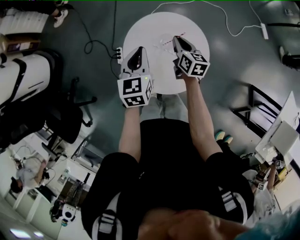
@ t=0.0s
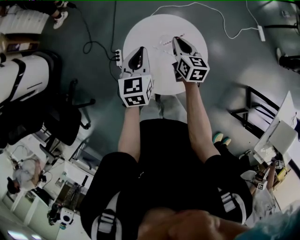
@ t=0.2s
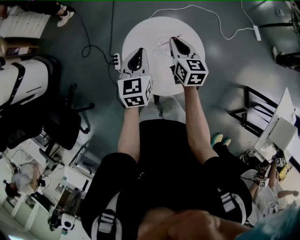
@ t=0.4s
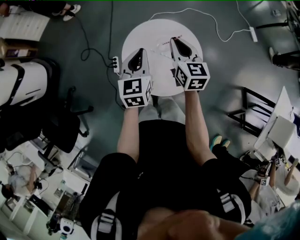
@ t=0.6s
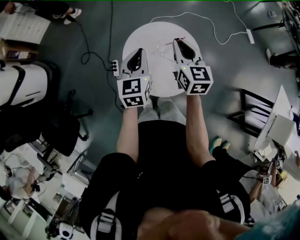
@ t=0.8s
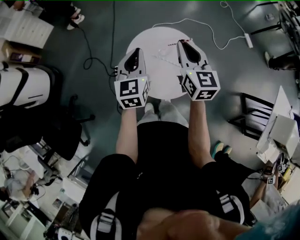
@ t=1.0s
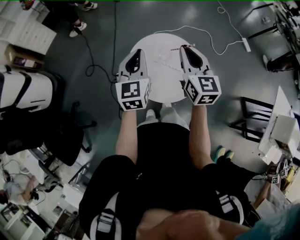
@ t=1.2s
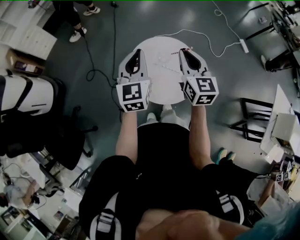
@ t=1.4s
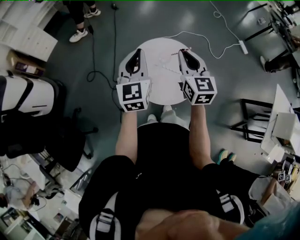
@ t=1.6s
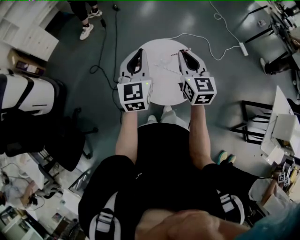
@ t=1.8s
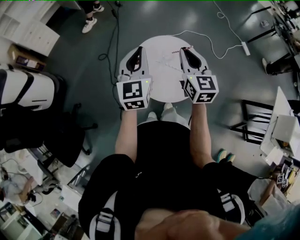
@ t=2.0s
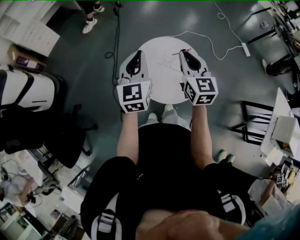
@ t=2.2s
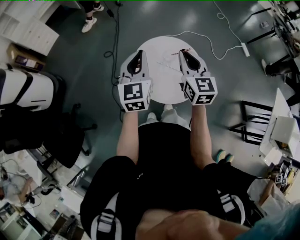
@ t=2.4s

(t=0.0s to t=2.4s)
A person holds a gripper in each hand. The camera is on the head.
t=0.0s - t=1.2s: The left gripper heads upward and backward, covering approximately 15 cm, while the right gripper is displaced upward and backward by about 30 cm, and swivels about 30 degrees.
t=1.2s - t=2.4s: The grippers make only small movements.

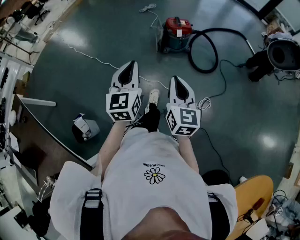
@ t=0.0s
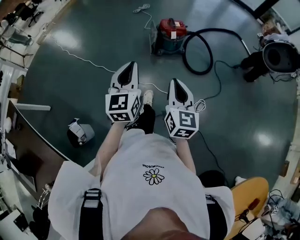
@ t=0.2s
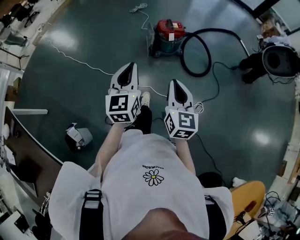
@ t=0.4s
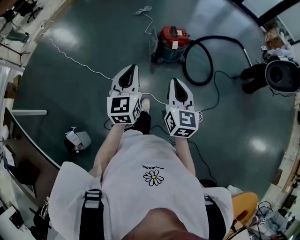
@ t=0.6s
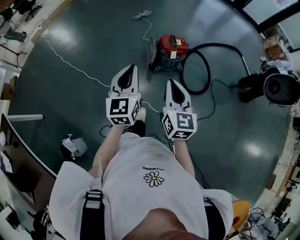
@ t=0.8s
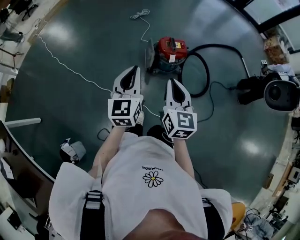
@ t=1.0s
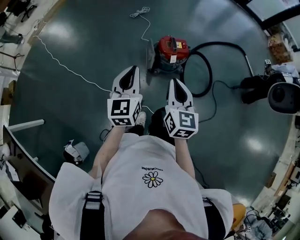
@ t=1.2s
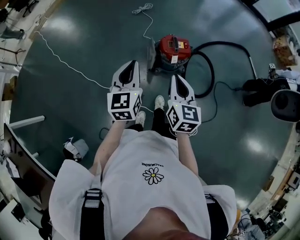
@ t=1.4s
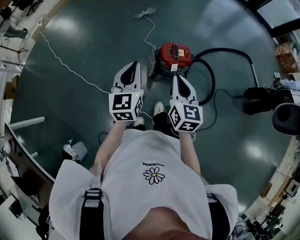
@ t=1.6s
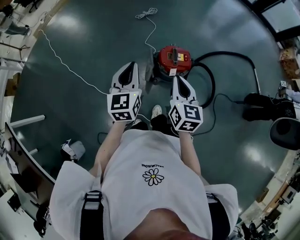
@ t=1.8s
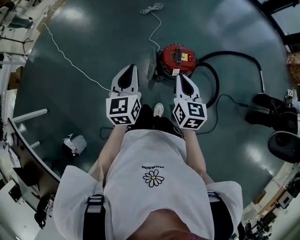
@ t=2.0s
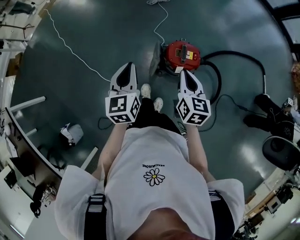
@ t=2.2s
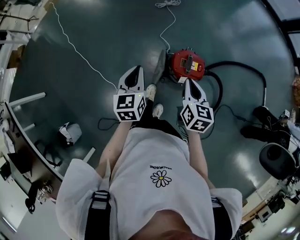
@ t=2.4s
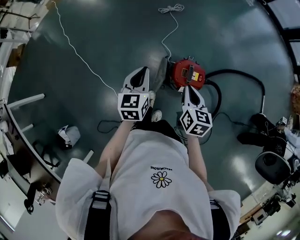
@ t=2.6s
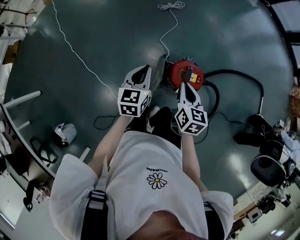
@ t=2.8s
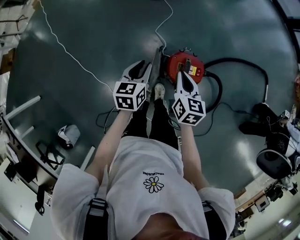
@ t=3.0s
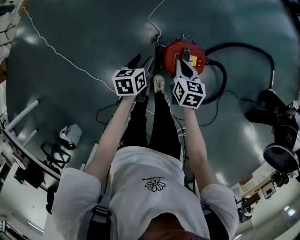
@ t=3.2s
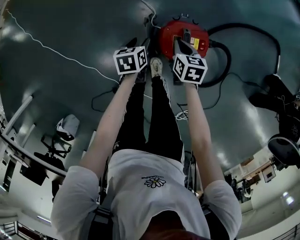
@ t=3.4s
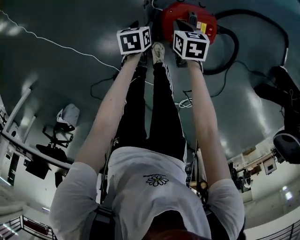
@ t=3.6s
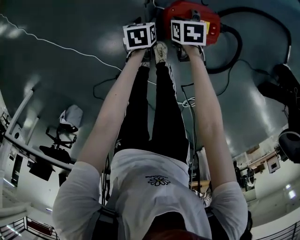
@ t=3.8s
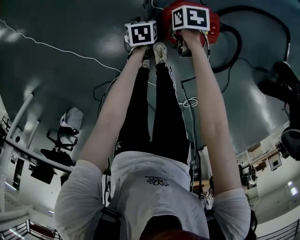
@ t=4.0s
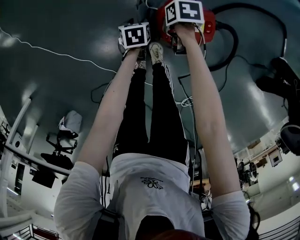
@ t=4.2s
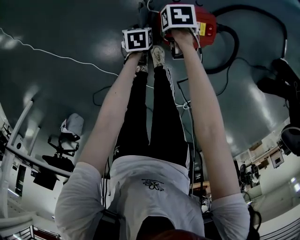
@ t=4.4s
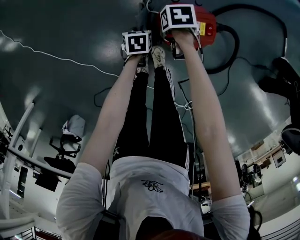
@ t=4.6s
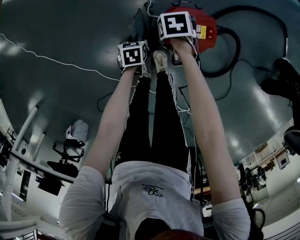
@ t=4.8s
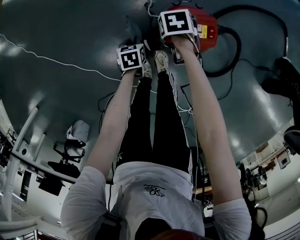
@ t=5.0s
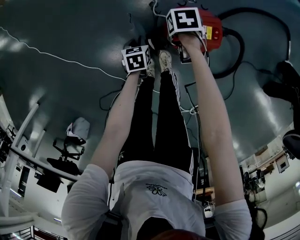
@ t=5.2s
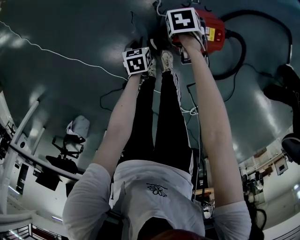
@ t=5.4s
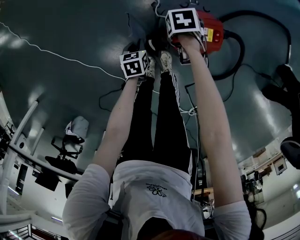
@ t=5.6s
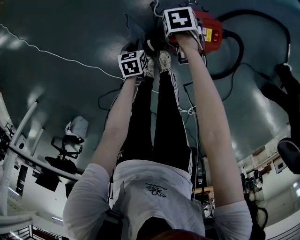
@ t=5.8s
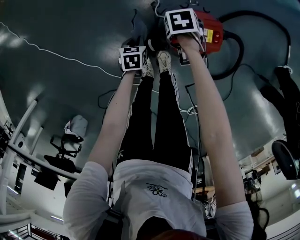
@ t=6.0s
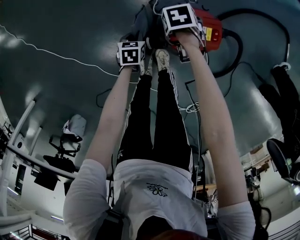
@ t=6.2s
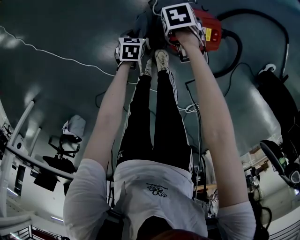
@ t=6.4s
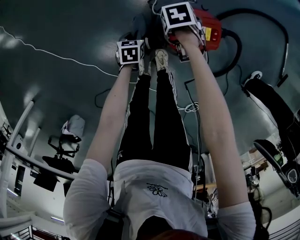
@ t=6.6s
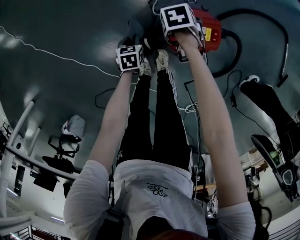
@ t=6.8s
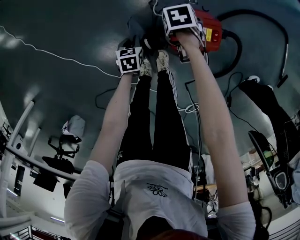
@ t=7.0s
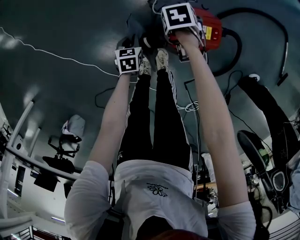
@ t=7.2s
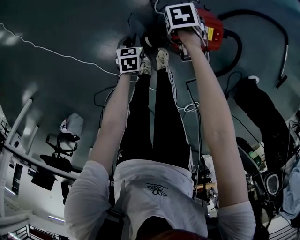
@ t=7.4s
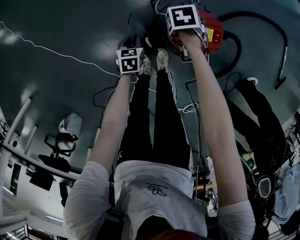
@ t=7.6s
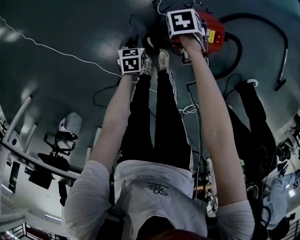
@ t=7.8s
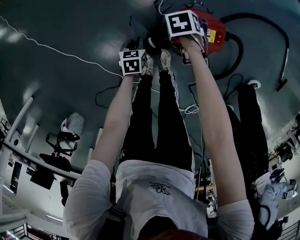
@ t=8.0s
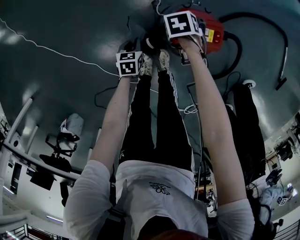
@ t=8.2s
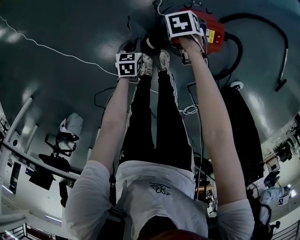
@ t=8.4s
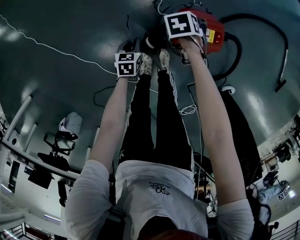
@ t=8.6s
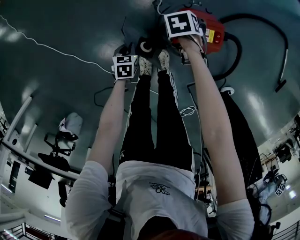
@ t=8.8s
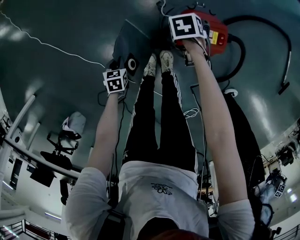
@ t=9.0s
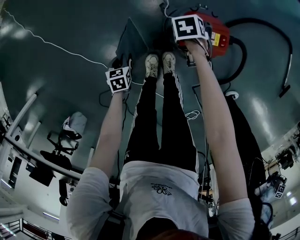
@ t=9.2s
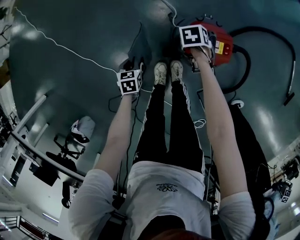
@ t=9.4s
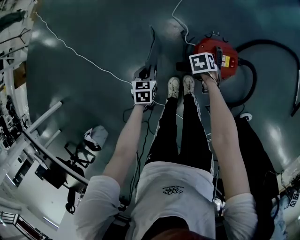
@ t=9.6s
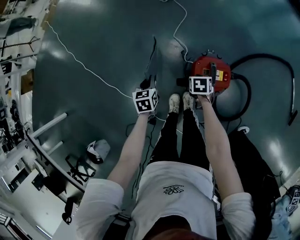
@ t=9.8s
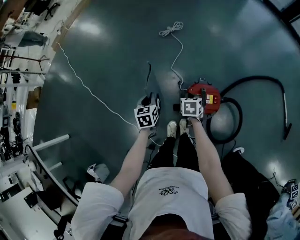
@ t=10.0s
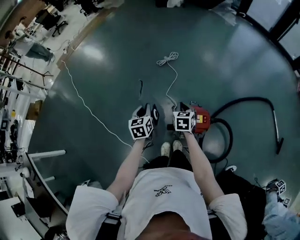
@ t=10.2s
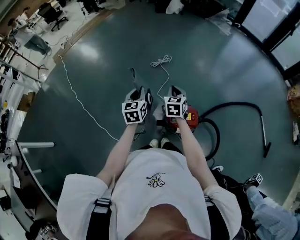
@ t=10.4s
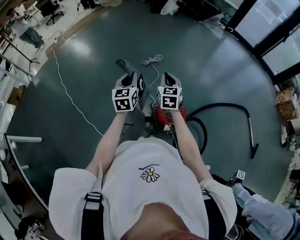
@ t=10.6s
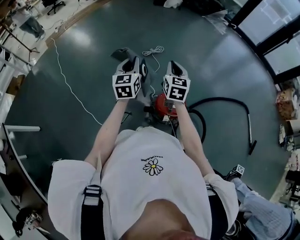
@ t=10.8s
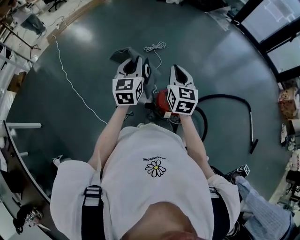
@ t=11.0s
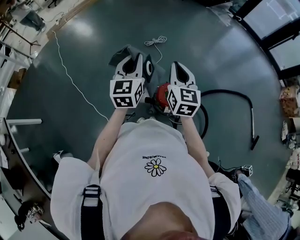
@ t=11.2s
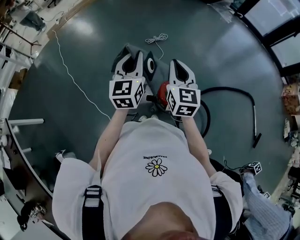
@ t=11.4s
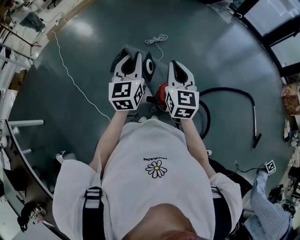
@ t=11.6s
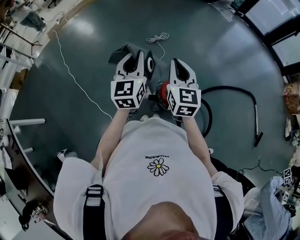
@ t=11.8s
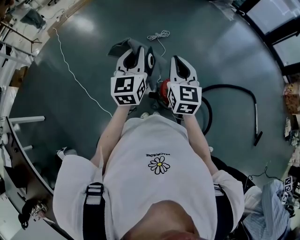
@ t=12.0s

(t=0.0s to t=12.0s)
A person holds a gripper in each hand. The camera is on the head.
t=0.0s - t=1.6s: The pair of grippers is taken forward, roughly 50 cm.
t=1.6s - t=3.0s: The grippers both shift forward and downward by approximately 30 cm. The left gripper rotates about 30 degrees. The right gripper rotates some 20 degrees.
t=3.0s - t=4.4s: Both grippers travel together downward, some 35 cm. The left gripper swivels about 30 degrees, and opens, then closes again. Meanwhile the right gripper points its fingers about 40 degrees further downward.
t=4.4s - t=6.0s: The left gripper moves roughly 5 cm.
t=6.0s - t=7.6s: The grippers move only a little.
t=7.6s - t=9.0s: The left gripper shifts by roughly 15 cm.
t=9.0s - t=10.4s: Both grippers move upward, about 50 cm. The left gripper tilts its fingers approximately 50 degrees upward; the right gripper points its fingers about 60 degrees further upward.
t=10.4s - t=12.0s: The left gripper shifts roughly 15 cm upward. The right gripper moves upward and backward, approximately 20 cm, and rotates about 20 degrees.

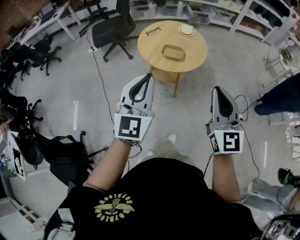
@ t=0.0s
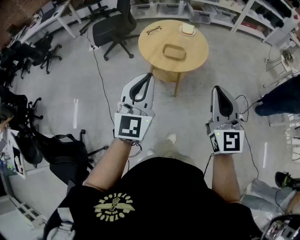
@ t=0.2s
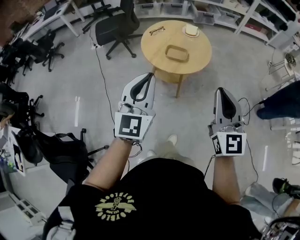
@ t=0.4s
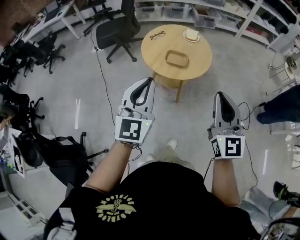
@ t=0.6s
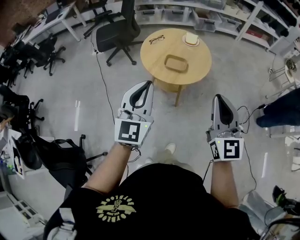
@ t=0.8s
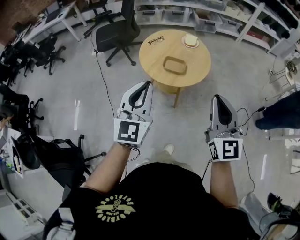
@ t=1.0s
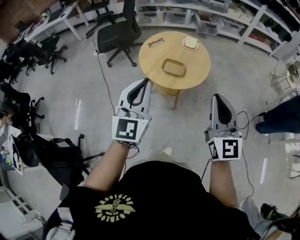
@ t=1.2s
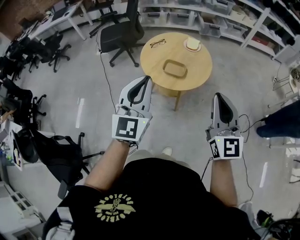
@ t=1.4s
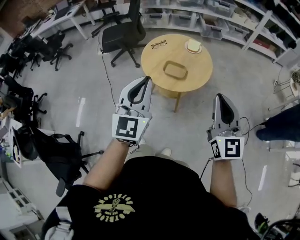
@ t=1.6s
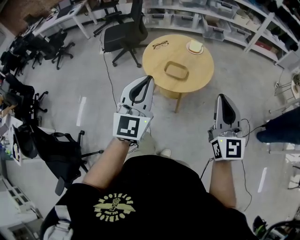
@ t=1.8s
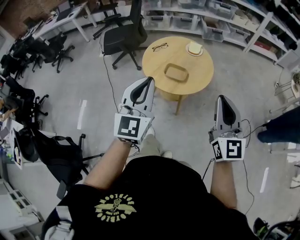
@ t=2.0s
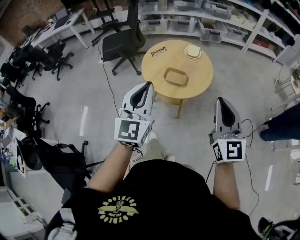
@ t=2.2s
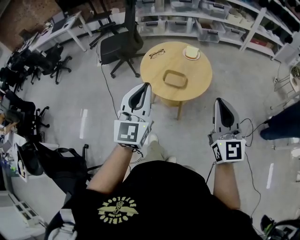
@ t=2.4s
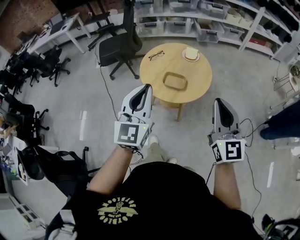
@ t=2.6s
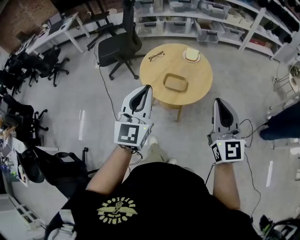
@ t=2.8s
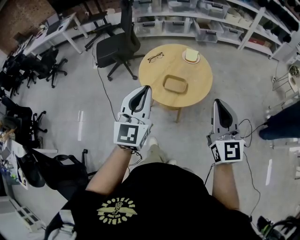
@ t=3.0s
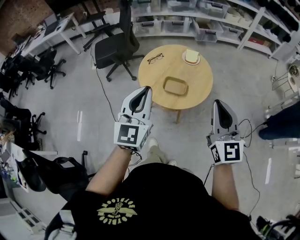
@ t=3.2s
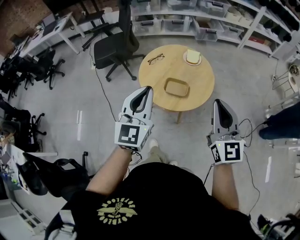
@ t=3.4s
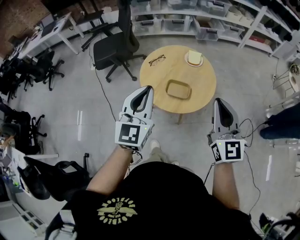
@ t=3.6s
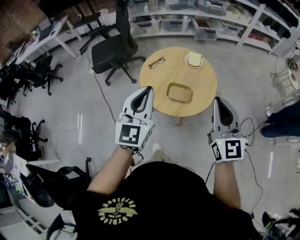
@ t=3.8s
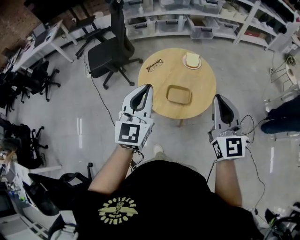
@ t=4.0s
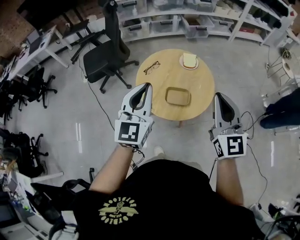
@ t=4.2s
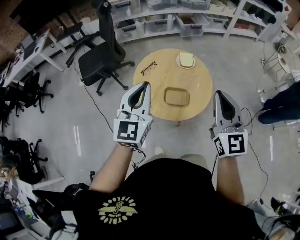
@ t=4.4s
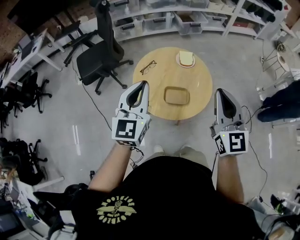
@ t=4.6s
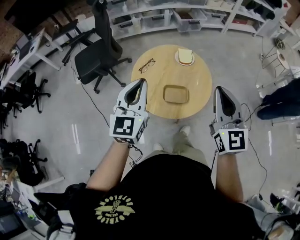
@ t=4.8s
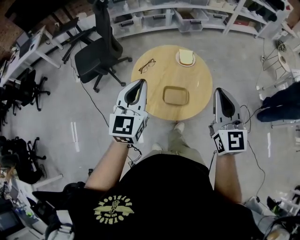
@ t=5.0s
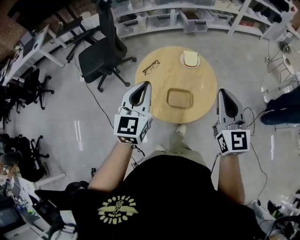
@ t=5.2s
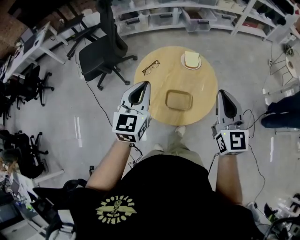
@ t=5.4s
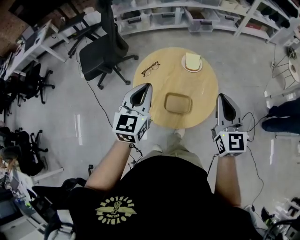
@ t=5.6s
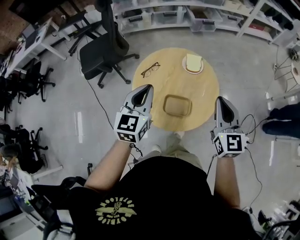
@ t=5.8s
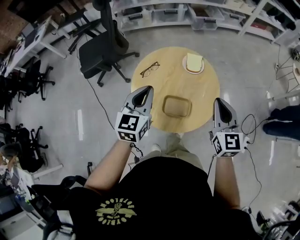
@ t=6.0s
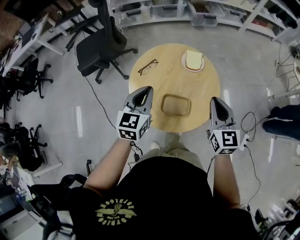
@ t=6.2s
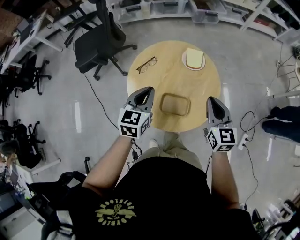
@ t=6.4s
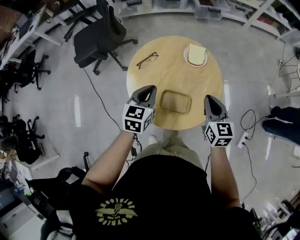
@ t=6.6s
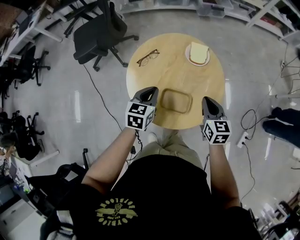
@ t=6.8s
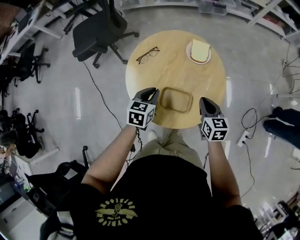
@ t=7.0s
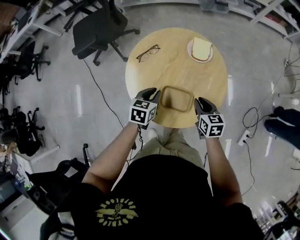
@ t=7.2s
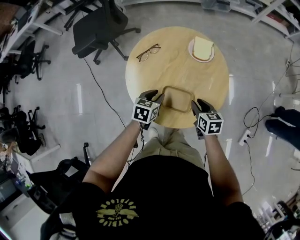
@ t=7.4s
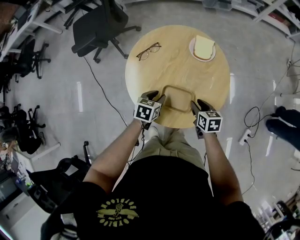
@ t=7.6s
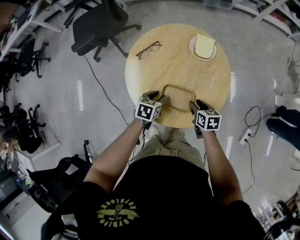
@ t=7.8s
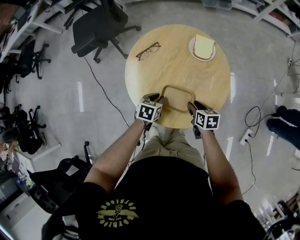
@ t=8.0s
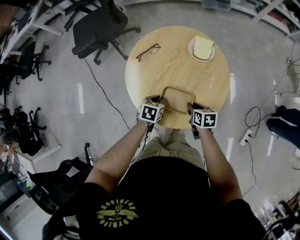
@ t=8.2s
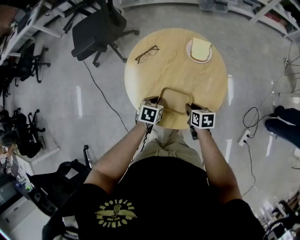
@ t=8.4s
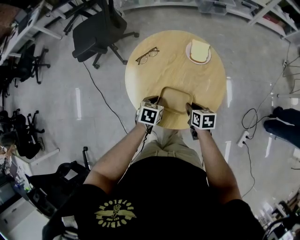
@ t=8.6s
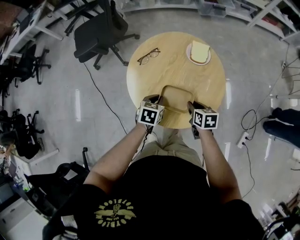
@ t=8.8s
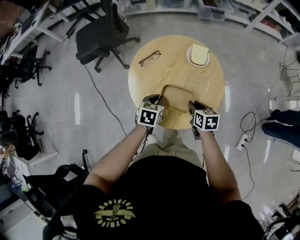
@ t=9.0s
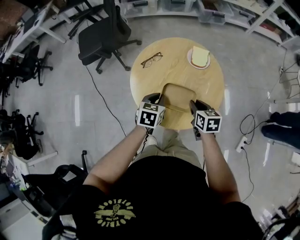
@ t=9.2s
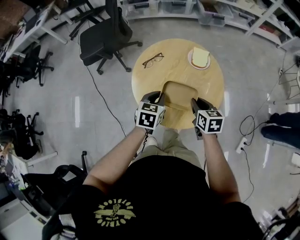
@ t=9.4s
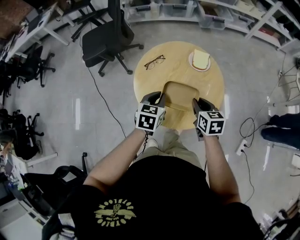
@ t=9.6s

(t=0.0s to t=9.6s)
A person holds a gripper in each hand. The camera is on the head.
t=0.0s - t=1.6s: The grippers both shift forward and to the right by some 15 cm.
t=1.6s - t=3.2s: Both grippers travel together forward, approximately 10 cm.
t=3.2s - t=4.8s: The right gripper heads forward and to the left, covering roughly 15 cm; the left gripper moves forward, approximately 20 cm.
t=4.8s - t=6.4s: The two grippers go some 25 cm downward and forward. The left gripper swivels roughly 20 degrees, while the right gripper turns by roughly 20 degrees.
t=6.4s - t=8.0s: Both grippers move downward, about 25 cm. The right gripper rotates roughly 40 degrees, and opens up. Meanwhile the left gripper angles its fingers downward, by about 30 degrees.
t=8.0s - t=9.6s: Both grippers move upward, some 20 cm. The right gripper changes its angle by approximately 20 degrees, and closes, while the left gripper swivels about 20 degrees.
